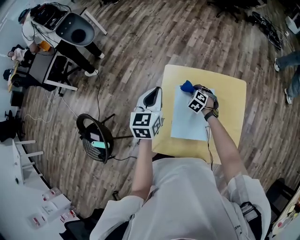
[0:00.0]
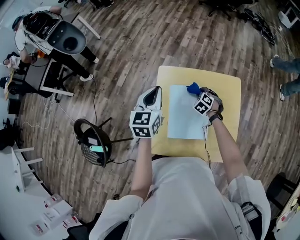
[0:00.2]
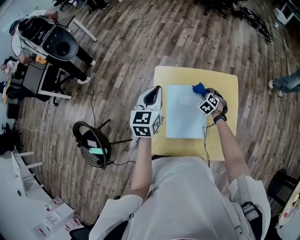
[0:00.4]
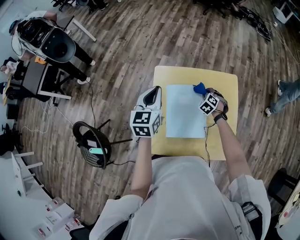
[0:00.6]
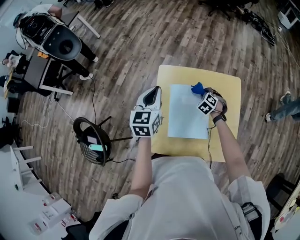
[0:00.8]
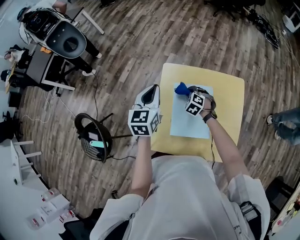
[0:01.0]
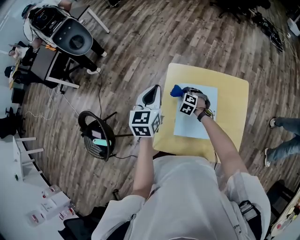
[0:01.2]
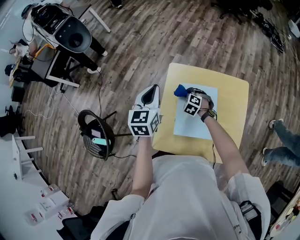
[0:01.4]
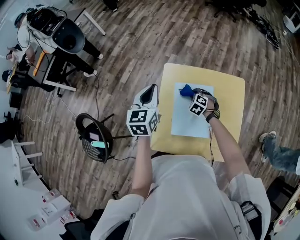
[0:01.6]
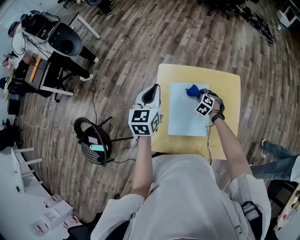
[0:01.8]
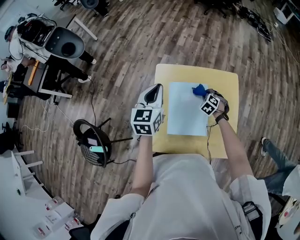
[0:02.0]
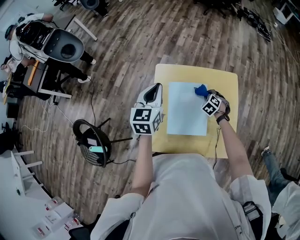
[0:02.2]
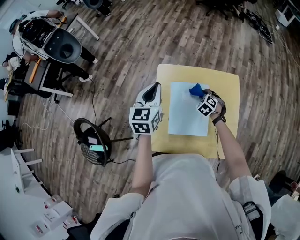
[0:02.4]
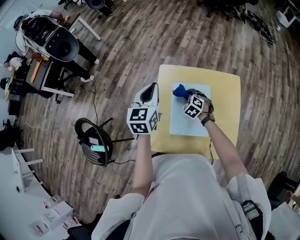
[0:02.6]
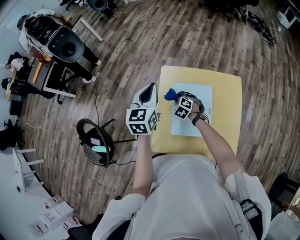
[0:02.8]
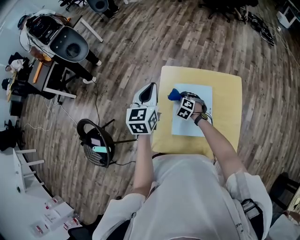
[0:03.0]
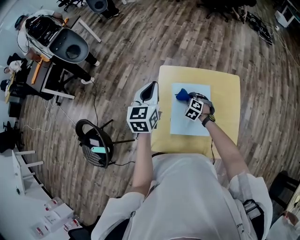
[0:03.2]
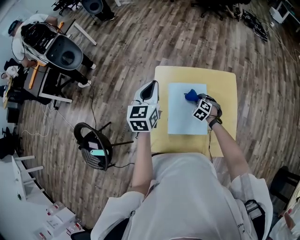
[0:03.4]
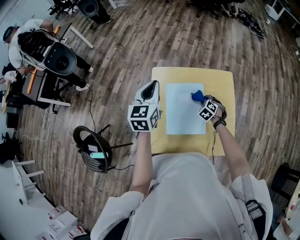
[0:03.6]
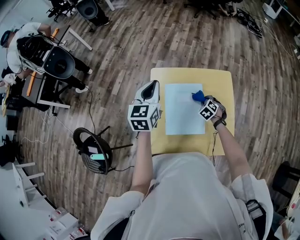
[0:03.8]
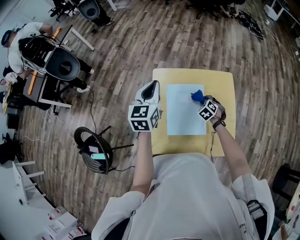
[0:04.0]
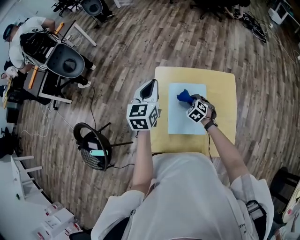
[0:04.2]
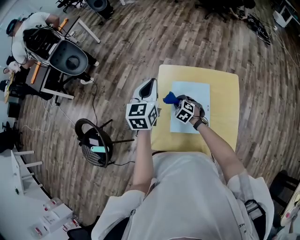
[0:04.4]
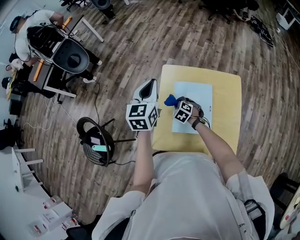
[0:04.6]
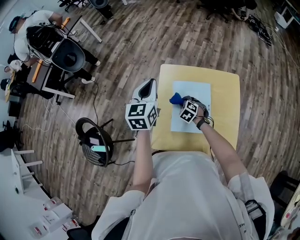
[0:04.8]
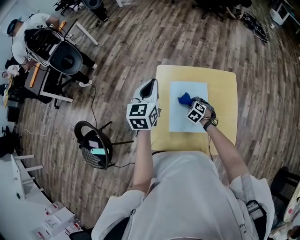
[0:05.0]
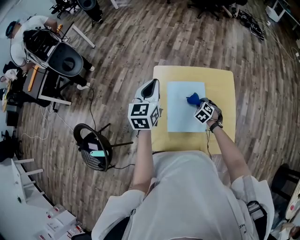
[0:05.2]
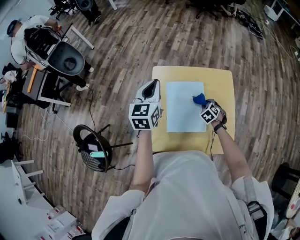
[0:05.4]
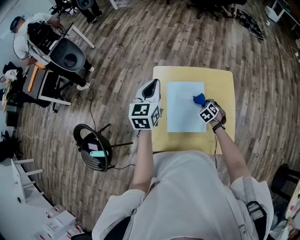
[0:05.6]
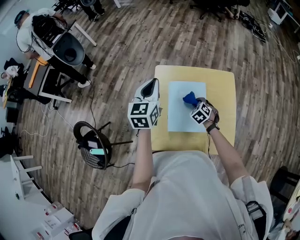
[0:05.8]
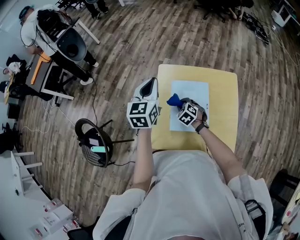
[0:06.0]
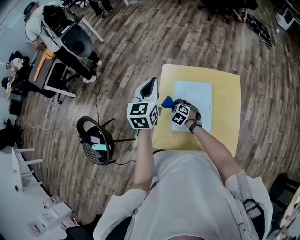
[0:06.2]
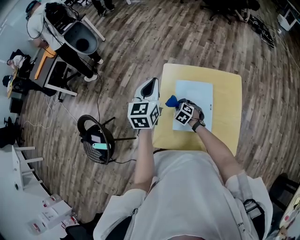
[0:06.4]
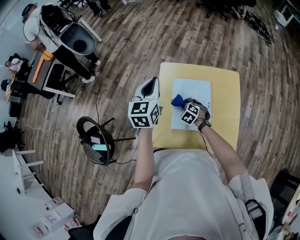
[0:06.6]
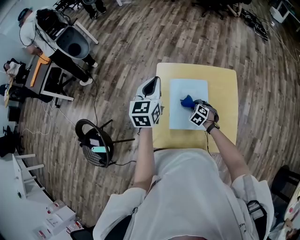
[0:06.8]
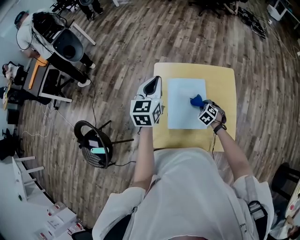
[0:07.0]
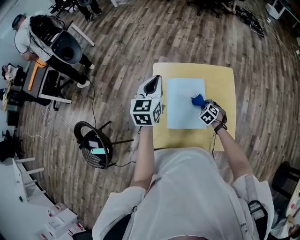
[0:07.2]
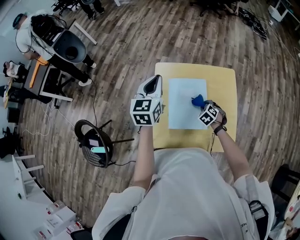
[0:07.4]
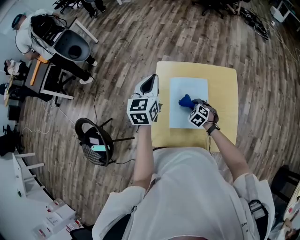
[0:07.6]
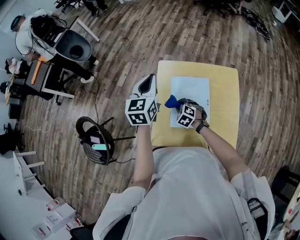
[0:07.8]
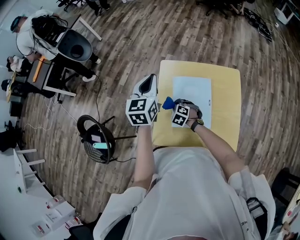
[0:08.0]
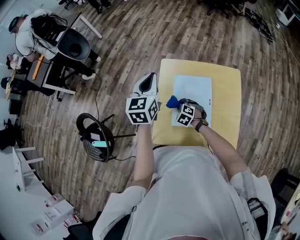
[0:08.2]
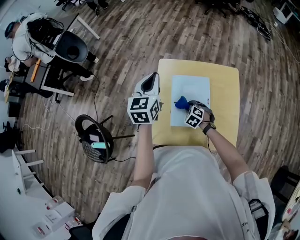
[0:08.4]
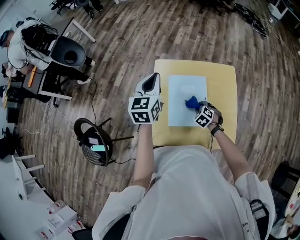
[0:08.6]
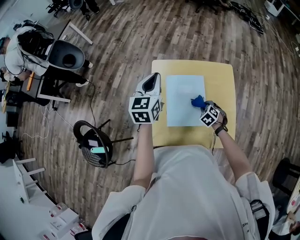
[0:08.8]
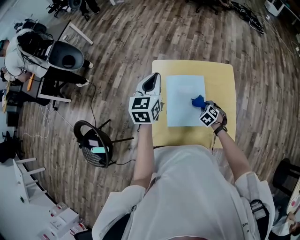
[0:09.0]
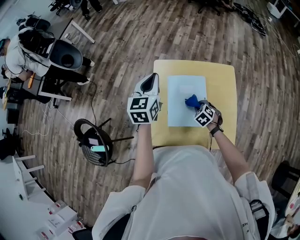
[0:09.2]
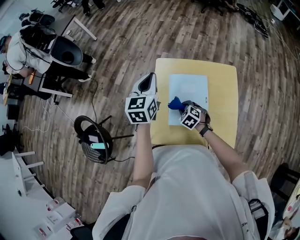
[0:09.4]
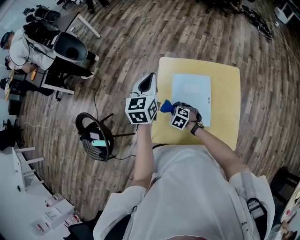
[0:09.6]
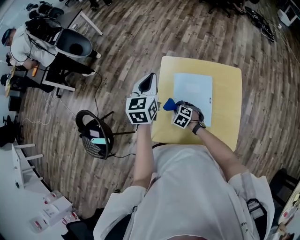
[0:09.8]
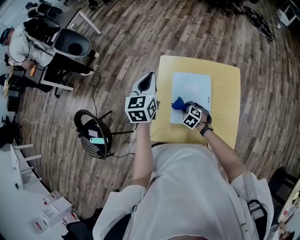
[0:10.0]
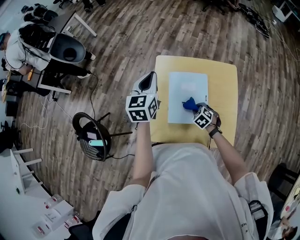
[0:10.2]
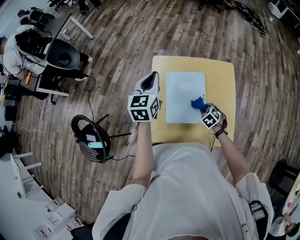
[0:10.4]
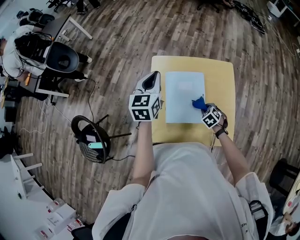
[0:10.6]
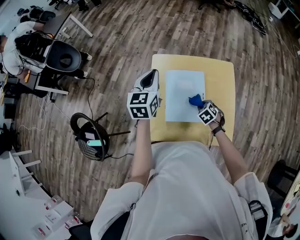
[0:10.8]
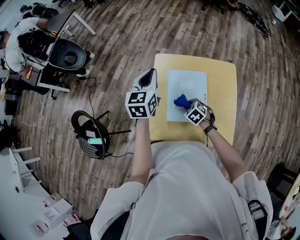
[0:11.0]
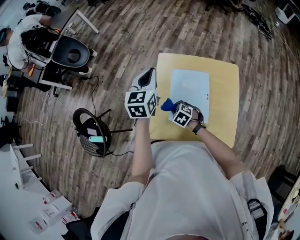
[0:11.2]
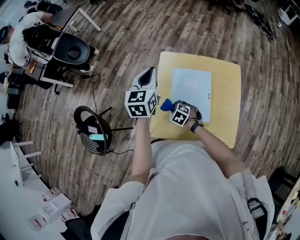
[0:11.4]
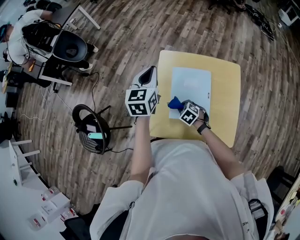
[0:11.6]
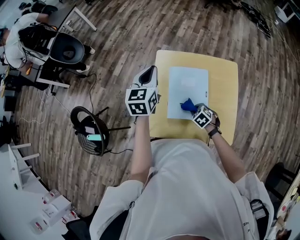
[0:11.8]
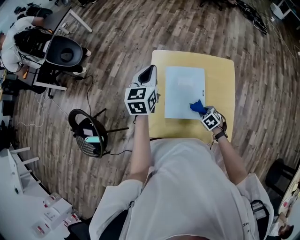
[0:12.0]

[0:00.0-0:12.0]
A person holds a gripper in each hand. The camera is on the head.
0:00.0 to 0:01.6: The right gripper swings left and right, roughly 20 cm each way, with 2 reversals.
0:01.6 to 0:03.0: The right gripper reaches roughly 15 cm to the right, then returns.
0:03.0 to 0:04.4: The right gripper goes to the right and returns, roughly 20 cm each way.
0:04.4 to 0:06.0: The right gripper moves about 20 cm to the right and comes back.
0:06.0 to 0:07.6: The right gripper goes left and right, about 20 cm each way, reversing 2 times.
0:07.6 to 0:09.0: The right gripper shifts roughly 10 cm to the right.
0:09.0 to 0:10.4: The right gripper reaches roughly 20 cm to the left, then returns.
0:10.4 to 0:12.0: The right gripper moves about 20 cm to the left and comes back.

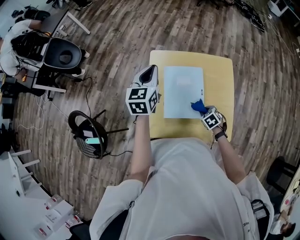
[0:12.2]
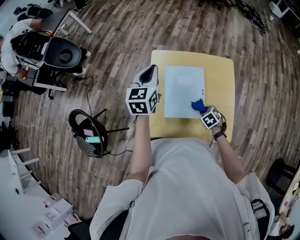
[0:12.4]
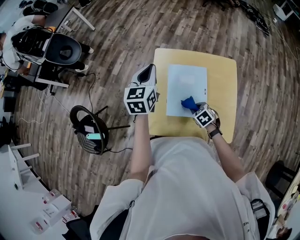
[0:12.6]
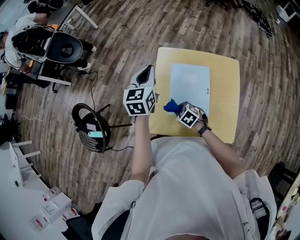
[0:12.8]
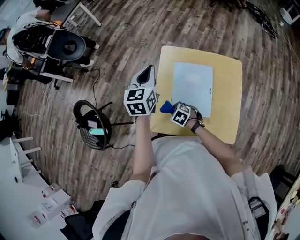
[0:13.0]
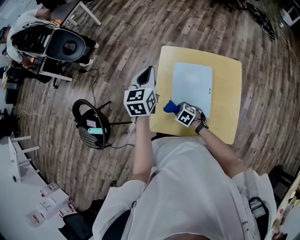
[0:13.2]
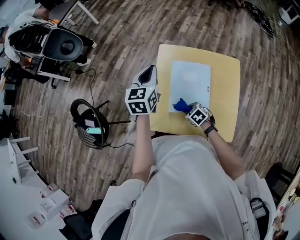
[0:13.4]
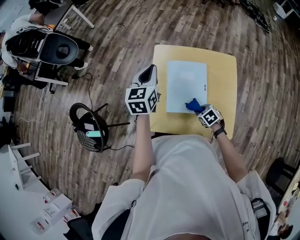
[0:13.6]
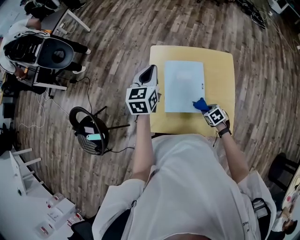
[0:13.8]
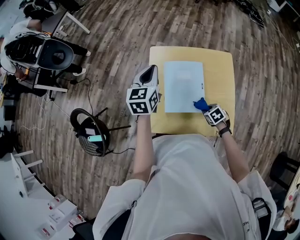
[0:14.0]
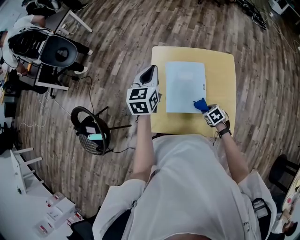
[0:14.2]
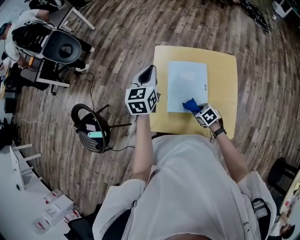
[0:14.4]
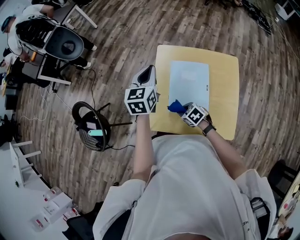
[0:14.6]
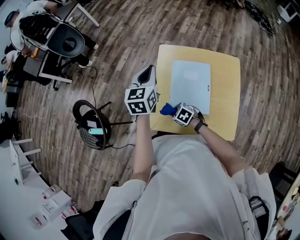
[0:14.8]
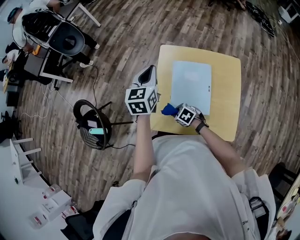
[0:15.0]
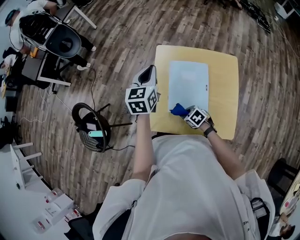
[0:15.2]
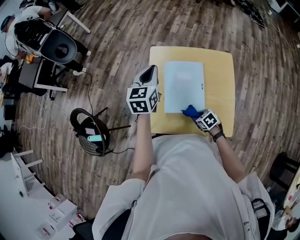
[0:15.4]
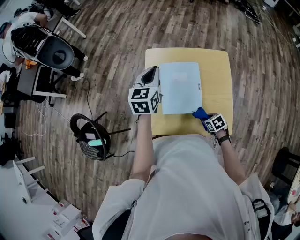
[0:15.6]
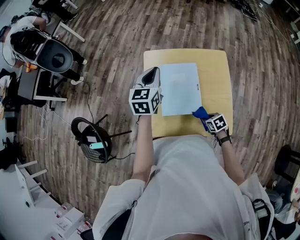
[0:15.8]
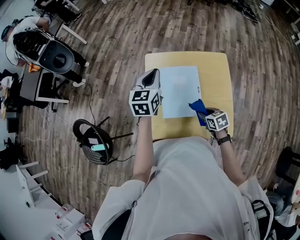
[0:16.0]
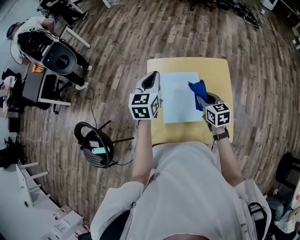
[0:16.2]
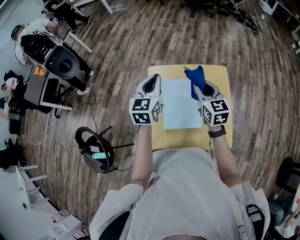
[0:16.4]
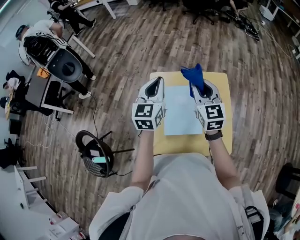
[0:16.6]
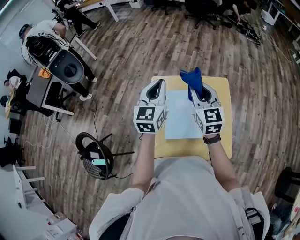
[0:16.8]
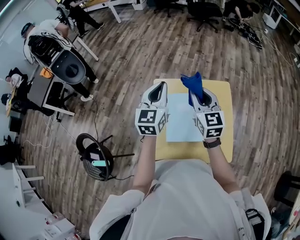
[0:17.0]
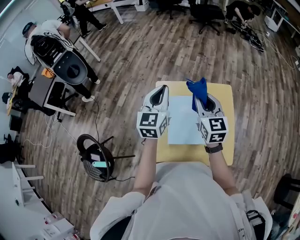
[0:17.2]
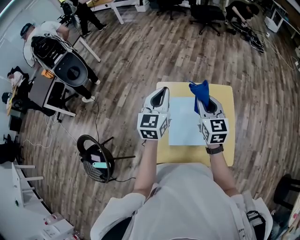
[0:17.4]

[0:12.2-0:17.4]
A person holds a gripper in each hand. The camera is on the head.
0:14.0 to 0:15.6: The right gripper reaches roughly 20 cm to the left, then returns.
0:15.6 to 0:17.4: The right gripper shifts roughly 40 cm upward and forward, and points its fingers some 50 degrees further upward. Meanwhile the left gripper shifts about 10 cm upward.

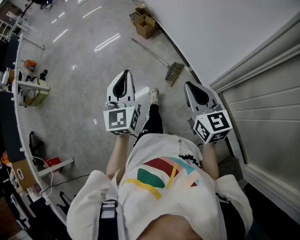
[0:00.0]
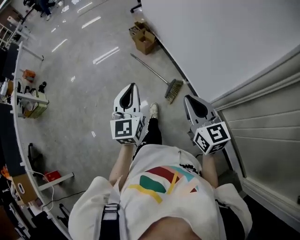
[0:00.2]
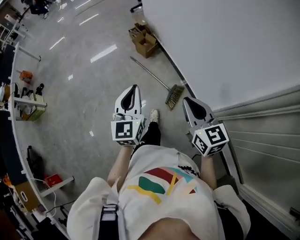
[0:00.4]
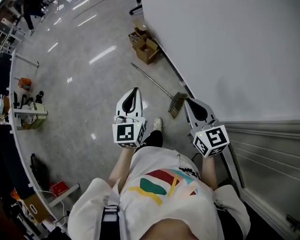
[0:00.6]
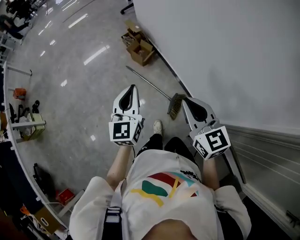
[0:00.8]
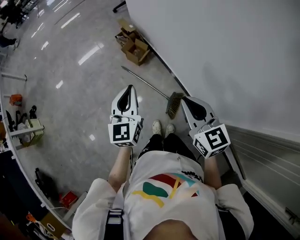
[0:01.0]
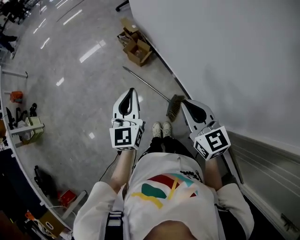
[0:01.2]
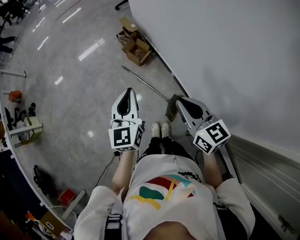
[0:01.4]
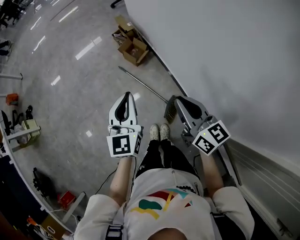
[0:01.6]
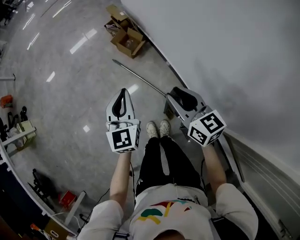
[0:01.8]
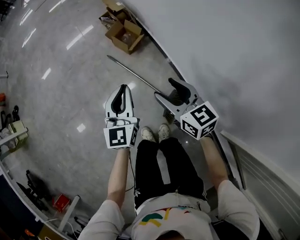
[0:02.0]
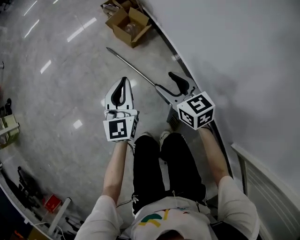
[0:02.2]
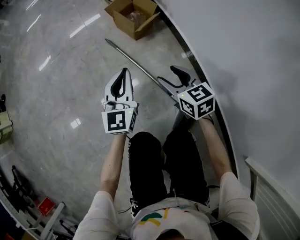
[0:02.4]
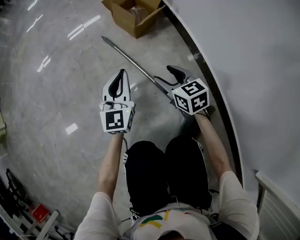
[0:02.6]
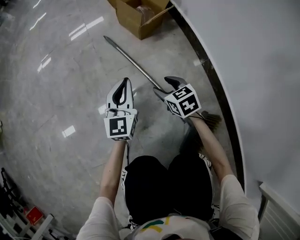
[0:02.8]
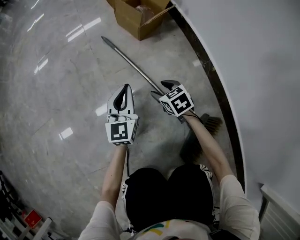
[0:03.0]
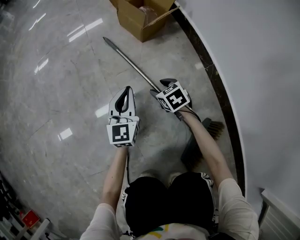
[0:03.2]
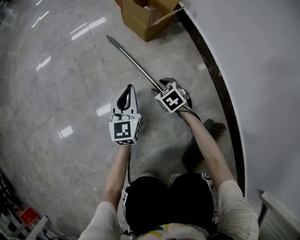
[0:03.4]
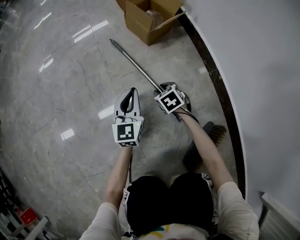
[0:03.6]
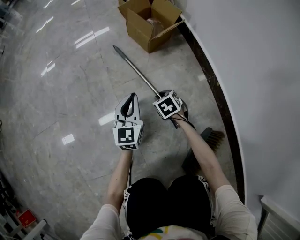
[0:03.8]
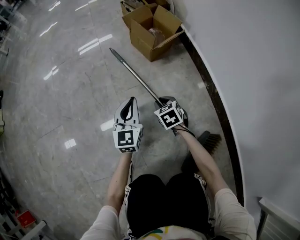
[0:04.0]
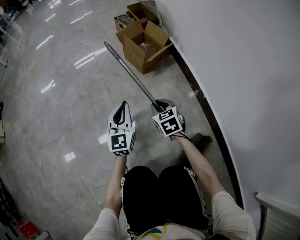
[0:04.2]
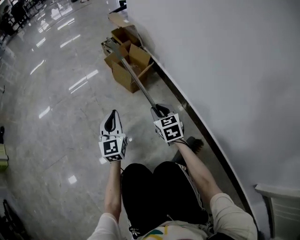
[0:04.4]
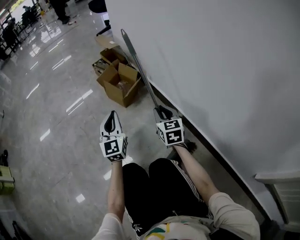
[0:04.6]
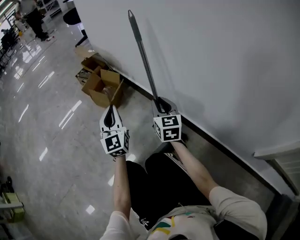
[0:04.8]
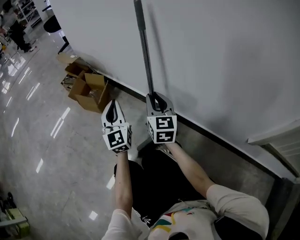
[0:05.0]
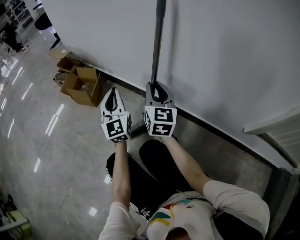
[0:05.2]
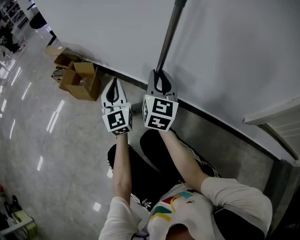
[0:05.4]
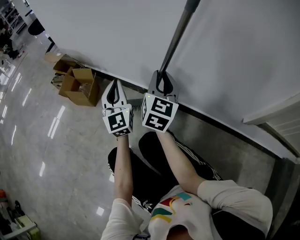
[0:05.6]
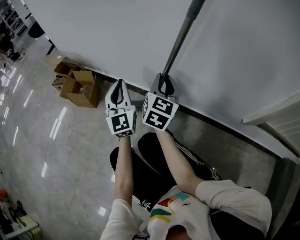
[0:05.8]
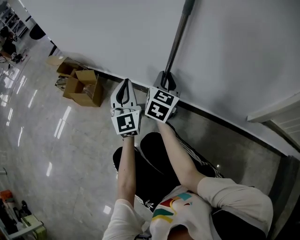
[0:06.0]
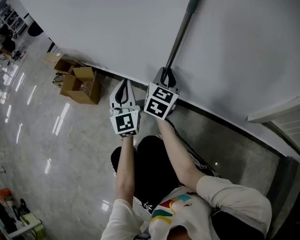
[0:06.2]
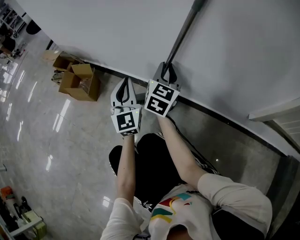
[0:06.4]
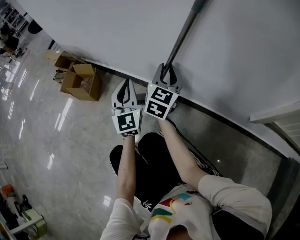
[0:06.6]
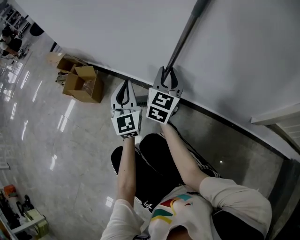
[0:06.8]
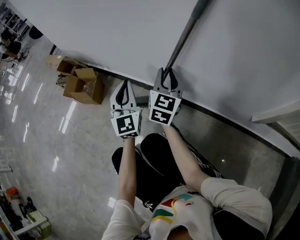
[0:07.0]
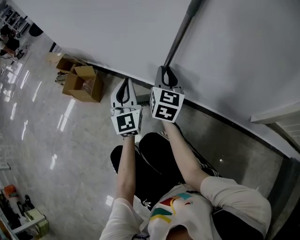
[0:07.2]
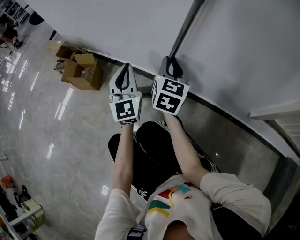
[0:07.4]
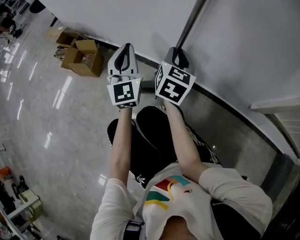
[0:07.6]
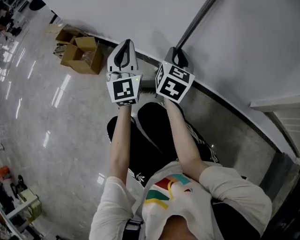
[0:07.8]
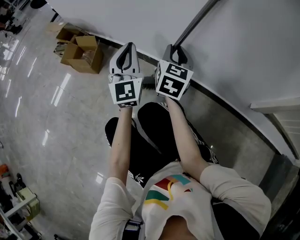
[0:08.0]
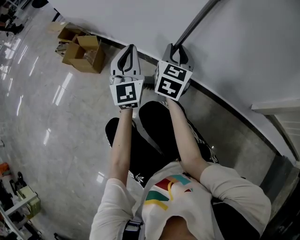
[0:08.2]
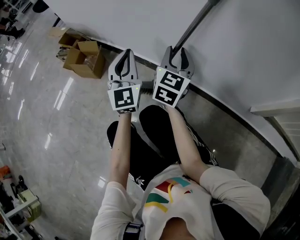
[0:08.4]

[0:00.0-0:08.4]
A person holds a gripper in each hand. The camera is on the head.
0:00.0 to 0:01.4: The two grippers travel together, forward, roughly 50 cm.
0:01.4 to 0:02.8: The two grippers go roughly 90 cm downward. The right gripper rotates about 30 degrees, and opens up.
0:02.8 to 0:04.2: The right gripper goes downward and returns, about 10 cm each way, and closes up; the left gripper reaches about 5 cm downward, then returns.
0:04.2 to 0:05.6: The left gripper changes place by roughly 35 cm, and turns by about 30 degrees; the right gripper heads upward, covering about 35 cm, and tips its fingers upward by some 40 degrees.
0:05.6 to 0:07.0: The right gripper shifts by approximately 5 cm; the left gripper heads to the right, covering approximately 5 cm.
0:07.0 to 0:08.4: There are only small adjustments of the grippers.
